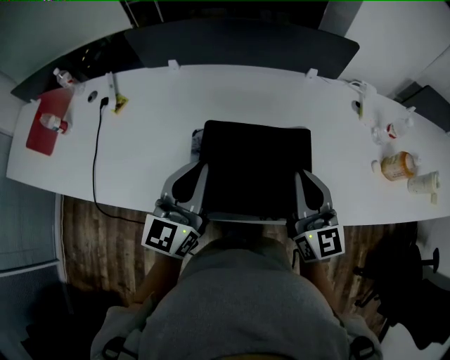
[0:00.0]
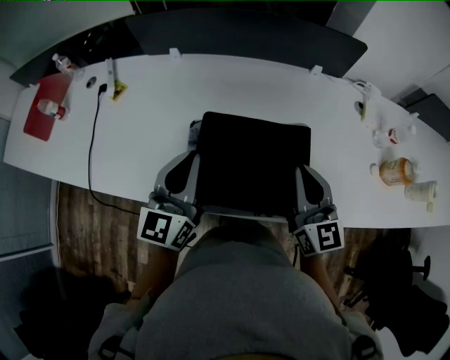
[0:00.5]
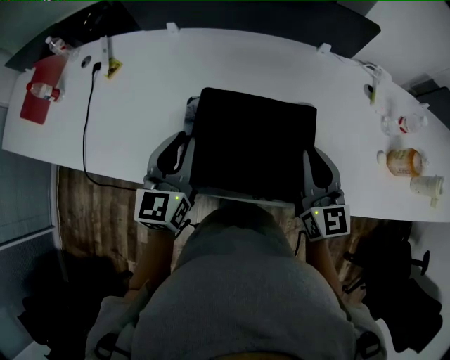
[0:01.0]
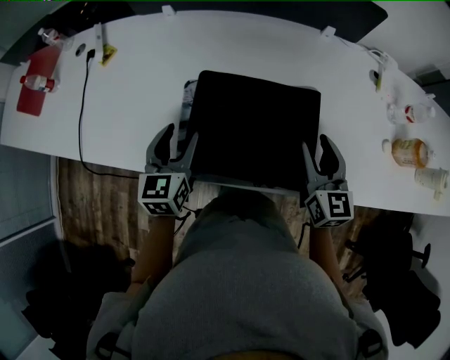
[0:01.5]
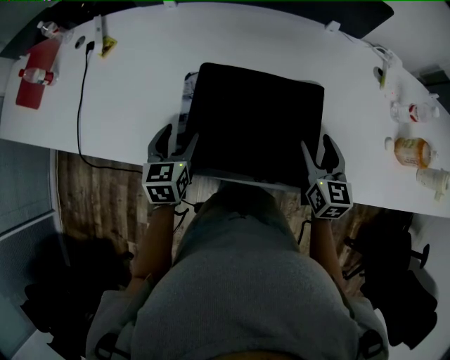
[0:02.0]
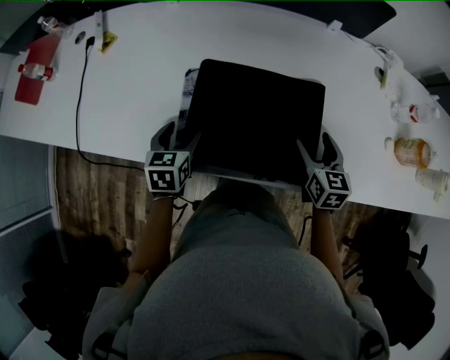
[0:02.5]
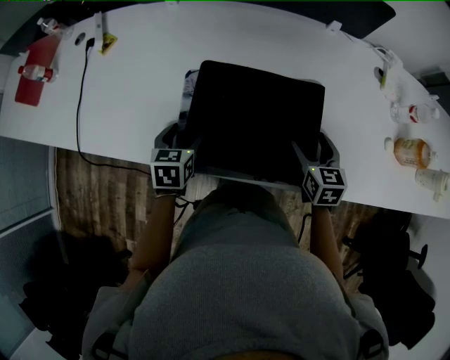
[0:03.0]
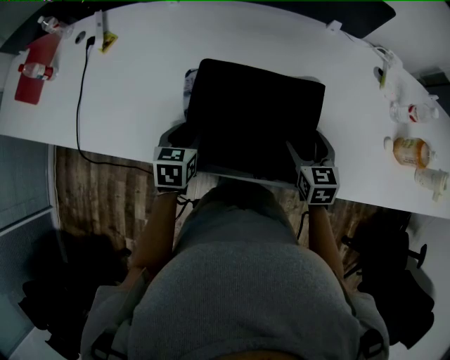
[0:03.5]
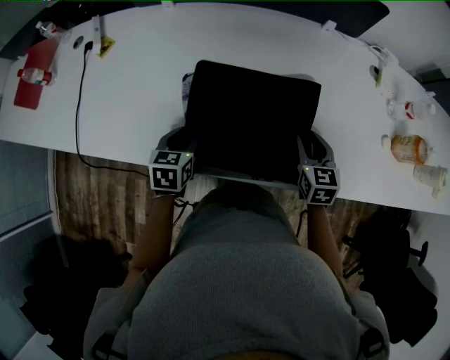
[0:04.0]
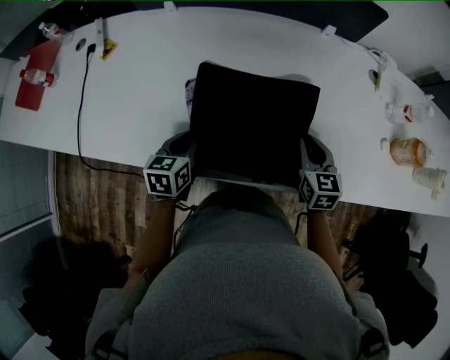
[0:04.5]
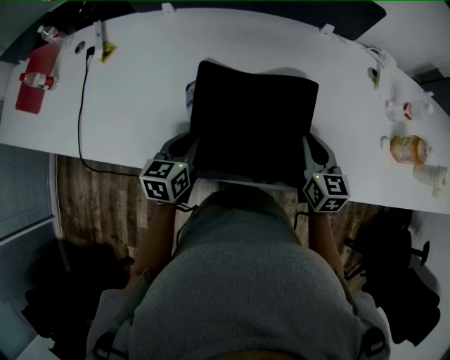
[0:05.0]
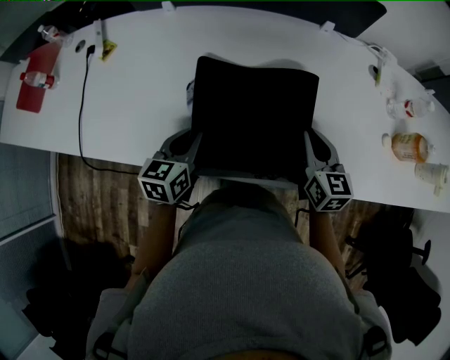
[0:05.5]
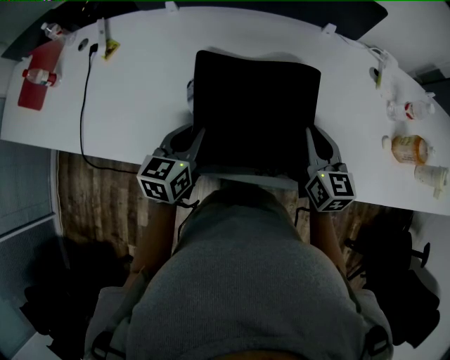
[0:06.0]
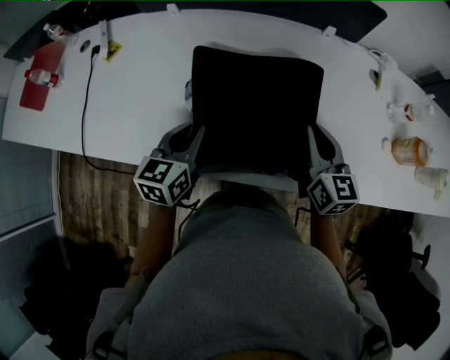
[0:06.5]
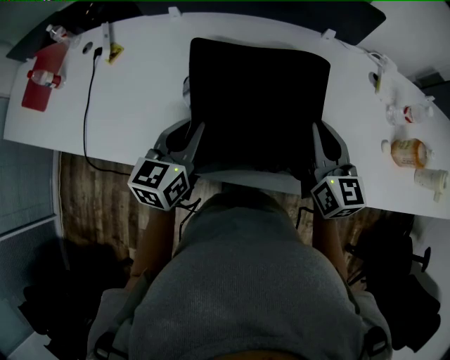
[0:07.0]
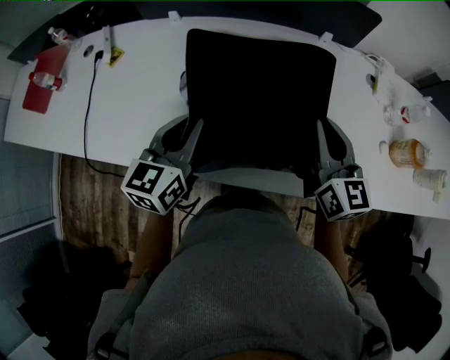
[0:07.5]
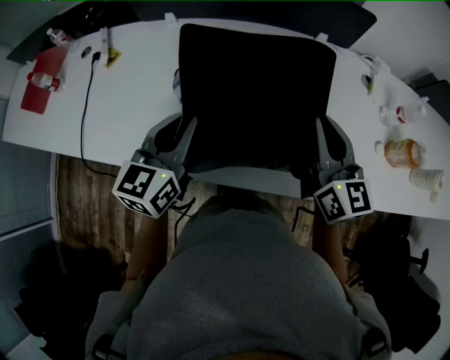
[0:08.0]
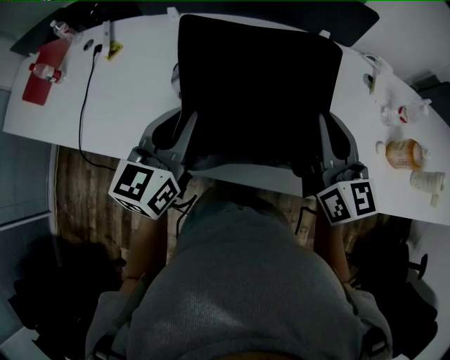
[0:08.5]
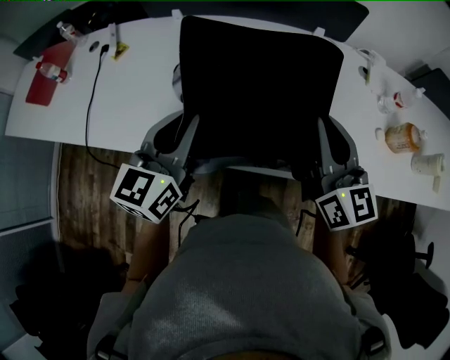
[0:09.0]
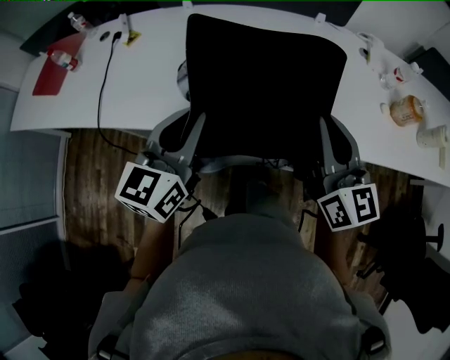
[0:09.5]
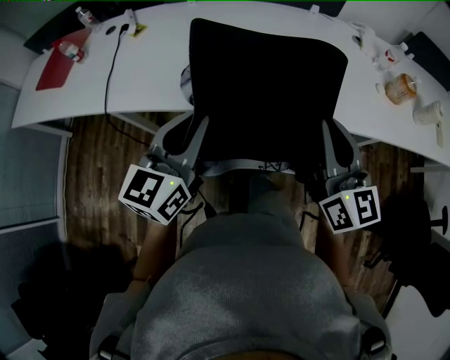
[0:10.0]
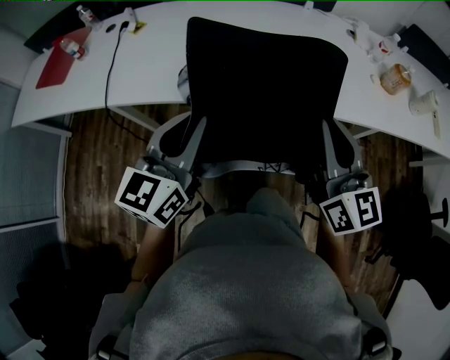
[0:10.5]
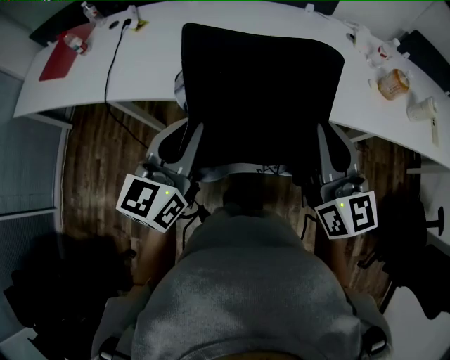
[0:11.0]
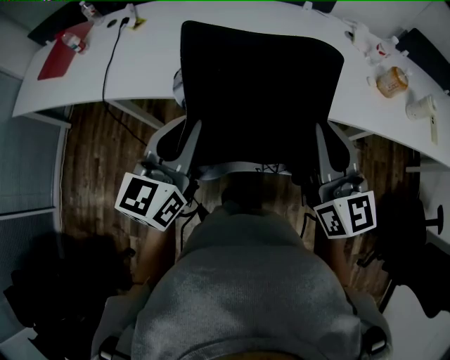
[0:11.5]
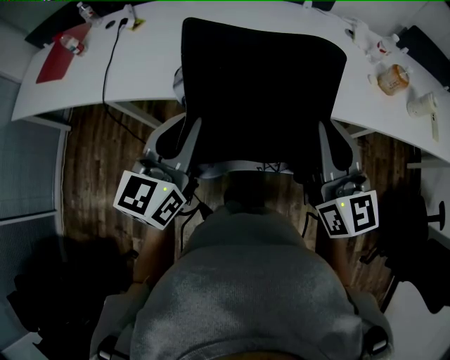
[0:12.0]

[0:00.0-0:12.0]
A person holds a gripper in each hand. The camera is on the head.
0:00.0 to 0:02.0: The right gripper goes some 20 cm downward and to the right, swivels approximately 30 degrees, and opens its fingers. Meanwhile the left gripper is displaced downward by some 20 cm, tips its fingers downward by roughly 40 degrees, and opens.
0:02.0 to 0:04.0: The left gripper closes. The right gripper closes up.
0:04.0 to 0:06.0: Both grippers move upward, roughly 10 cm.
0:06.0 to 0:08.0: The grippers both shift upward by approximately 15 cm.
0:08.0 to 0:10.0: The two grippers go approximately 25 cm backward.
0:10.0 to 0:12.0: The right gripper ends up approximately 5 cm from where it was; the left gripper ends up roughly 5 cm from where it was.

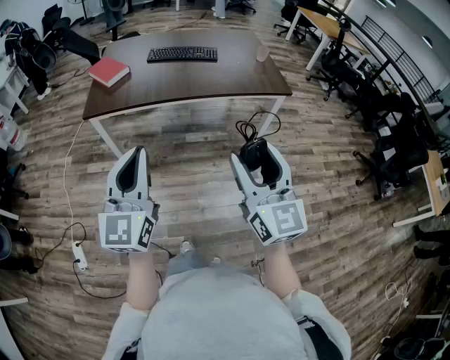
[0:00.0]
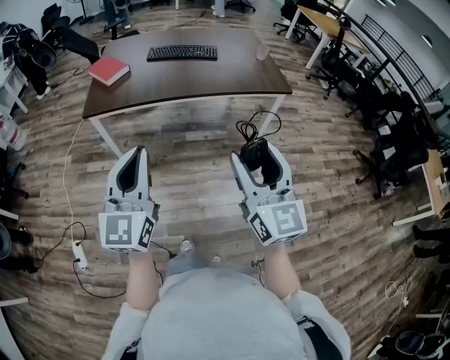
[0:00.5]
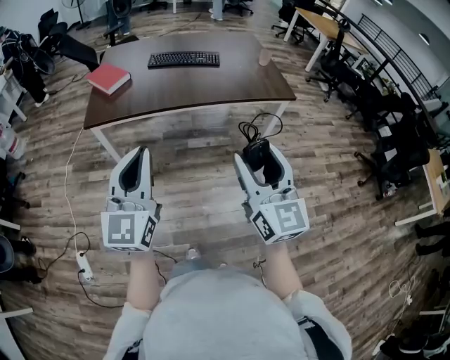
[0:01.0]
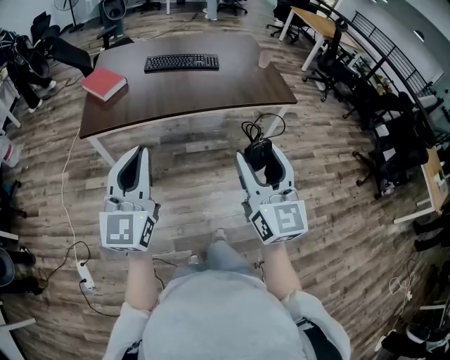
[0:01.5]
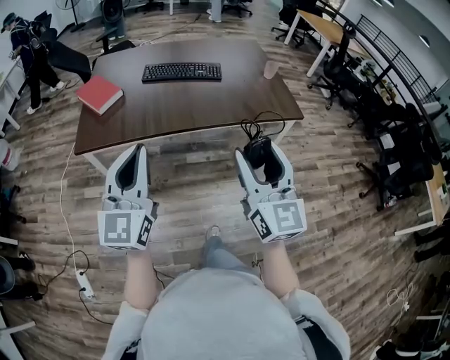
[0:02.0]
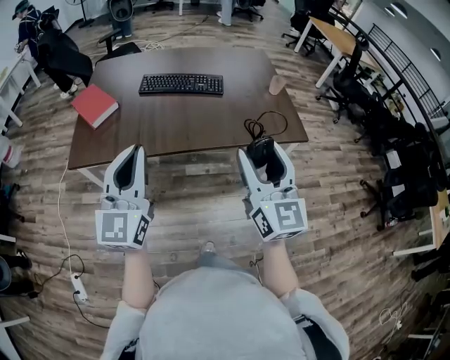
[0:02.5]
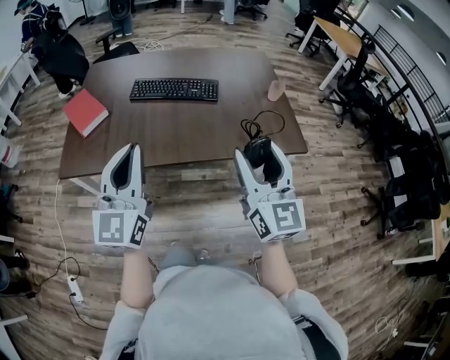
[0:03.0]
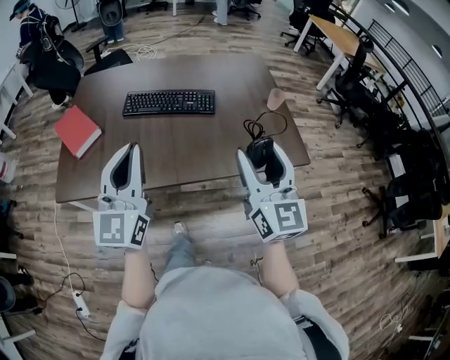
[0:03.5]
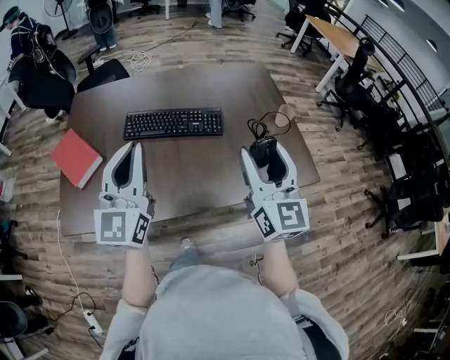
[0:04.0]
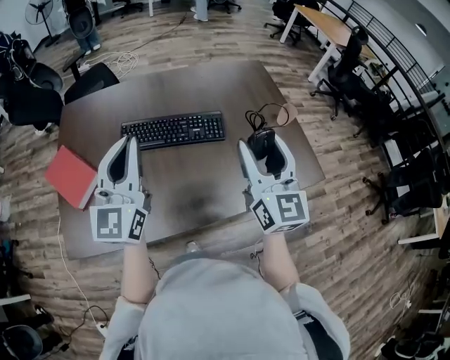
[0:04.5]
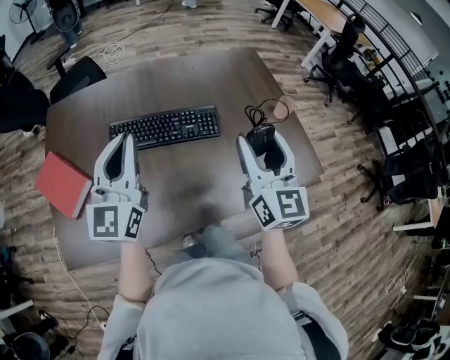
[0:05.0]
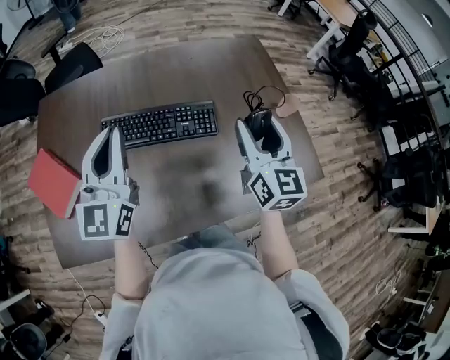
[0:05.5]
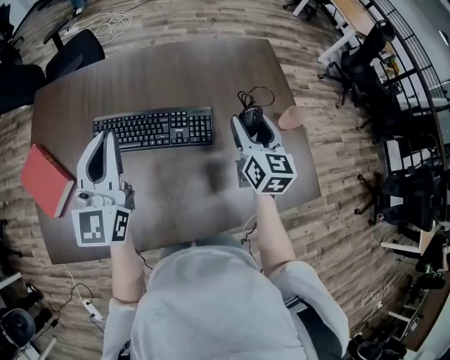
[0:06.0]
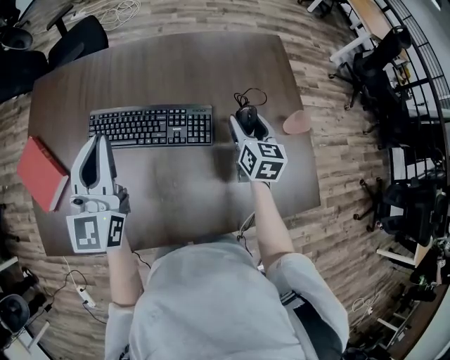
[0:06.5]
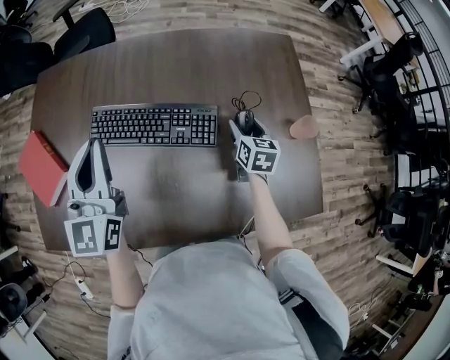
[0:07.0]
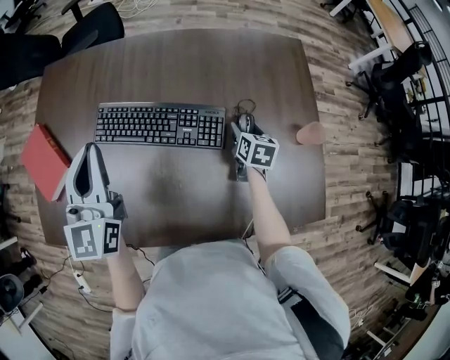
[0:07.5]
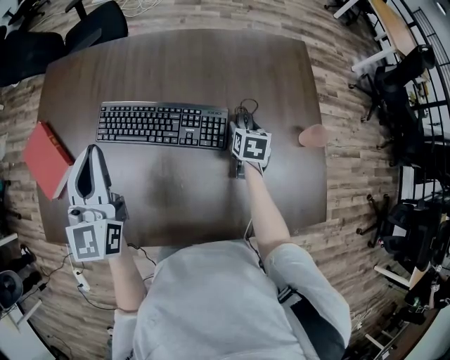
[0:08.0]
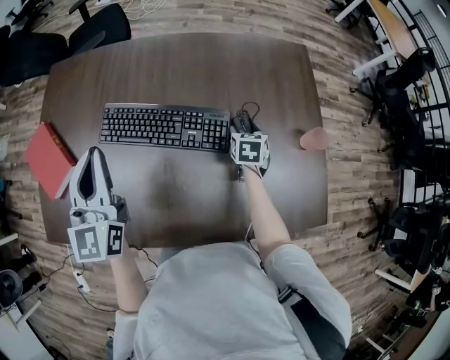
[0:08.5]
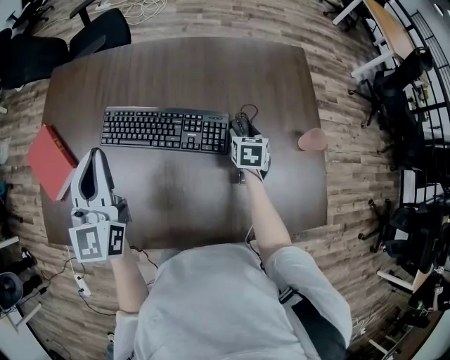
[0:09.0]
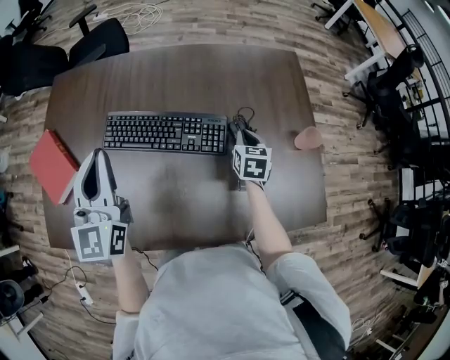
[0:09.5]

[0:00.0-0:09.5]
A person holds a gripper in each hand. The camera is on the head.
0:00.0 to 0:02.0: Both grippers travel together forward, approximately 20 cm.
0:02.0 to 0:04.0: The two grippers travel together, forward, roughly 40 cm.
0:04.0 to 0:05.5: Both grippers move forward, about 20 cm.
0:05.5 to 0:07.5: The right gripper travels downward and forward by some 35 cm, and tilts its fingers roughly 40 degrees downward. The left gripper moves downward and forward, about 10 cm, and rotates roughly 20 degrees.
0:07.5 to 0:09.5: The right gripper shifts roughly 5 cm upward, and closes up.

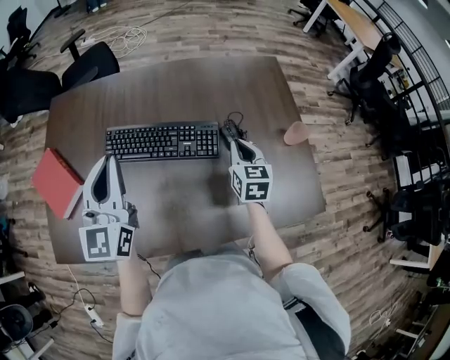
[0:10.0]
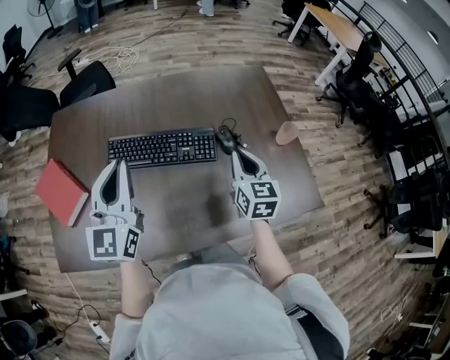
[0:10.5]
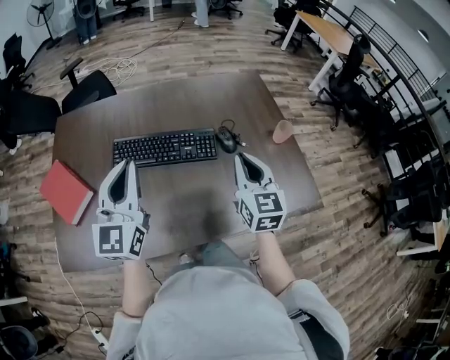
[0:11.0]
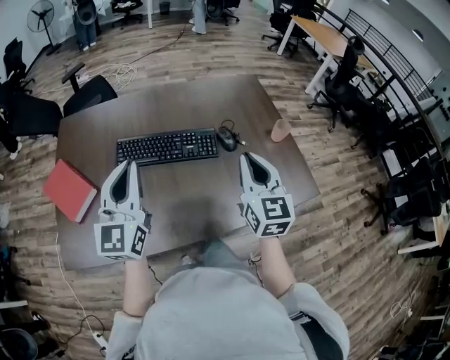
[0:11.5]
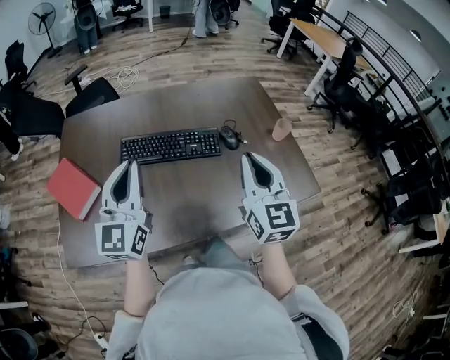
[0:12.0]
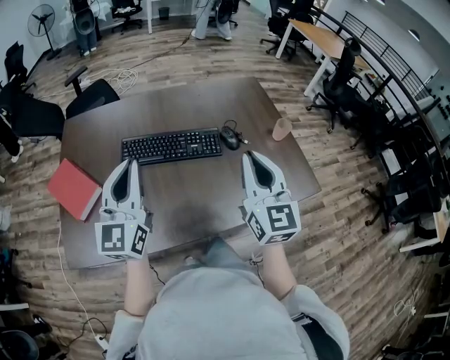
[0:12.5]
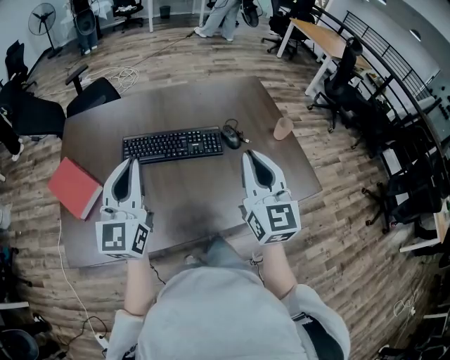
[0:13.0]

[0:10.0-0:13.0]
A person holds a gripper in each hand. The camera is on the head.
0:10.0 to 0:11.5: The left gripper goes roughly 10 cm backward. The right gripper moves backward and upward, roughly 25 cm, and rotates about 20 degrees.
0:11.5 to 0:13.0: The right gripper ends up about 5 cm from where it was.

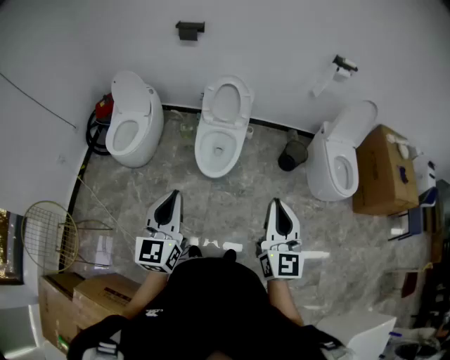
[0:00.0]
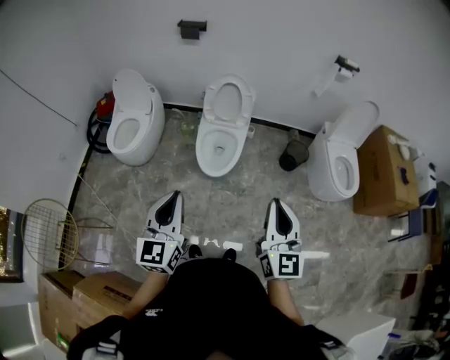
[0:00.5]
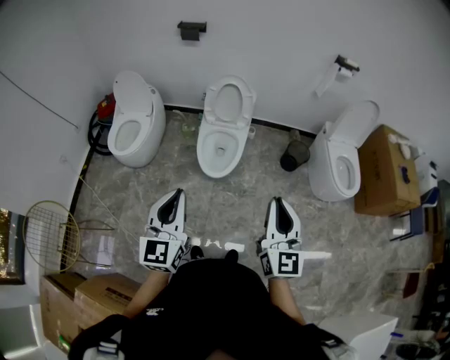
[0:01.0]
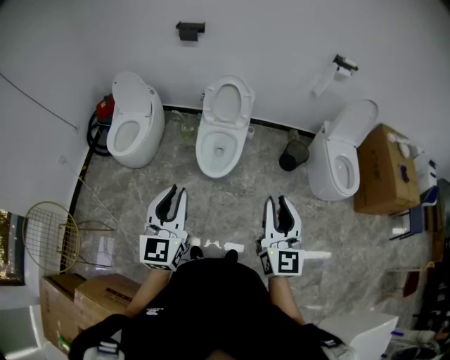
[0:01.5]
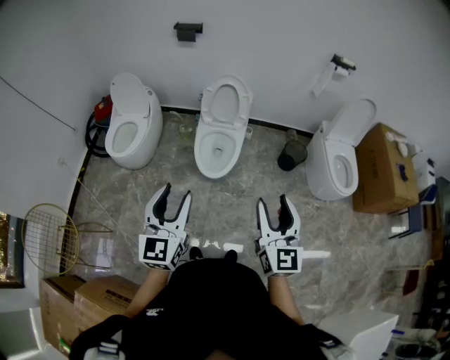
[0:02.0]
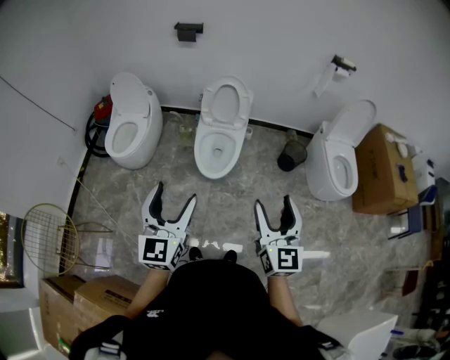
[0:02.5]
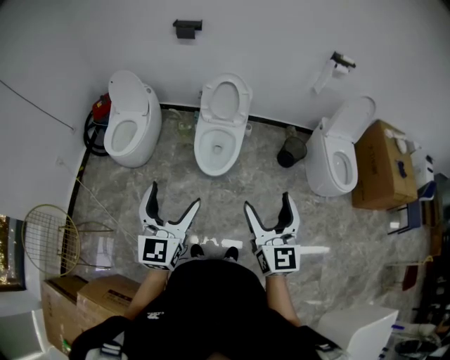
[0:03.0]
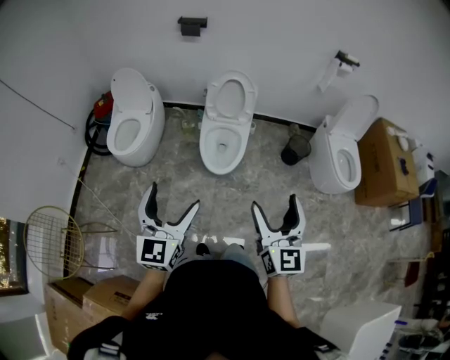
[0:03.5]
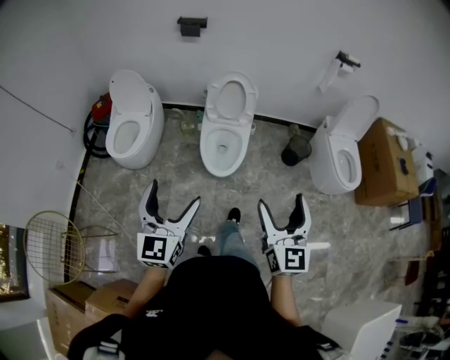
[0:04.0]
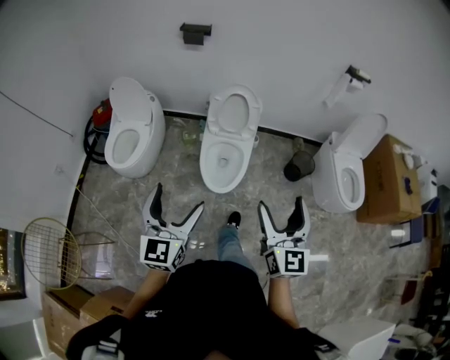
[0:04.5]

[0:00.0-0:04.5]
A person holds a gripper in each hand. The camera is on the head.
0:00.0 to 0:02.0: The left gripper opens its fingers. The right gripper opens its fingers.
0:02.0 to 0:04.5: The left gripper heads forward and to the left, covering some 10 cm, and opens, while the right gripper goes some 10 cm forward, and opens up.
